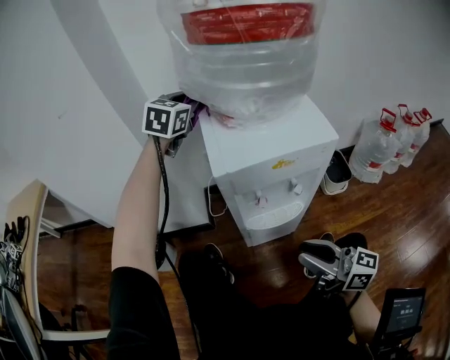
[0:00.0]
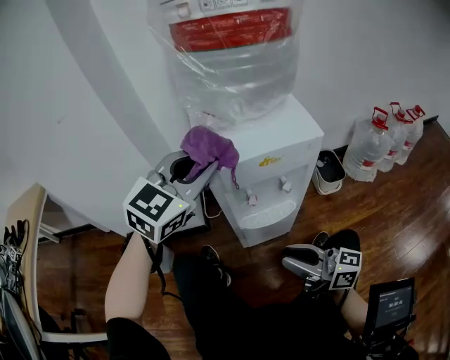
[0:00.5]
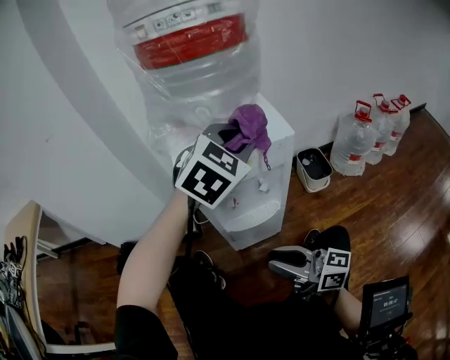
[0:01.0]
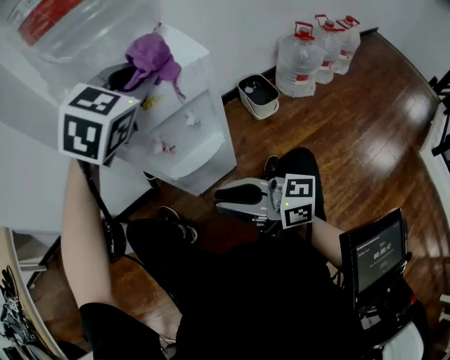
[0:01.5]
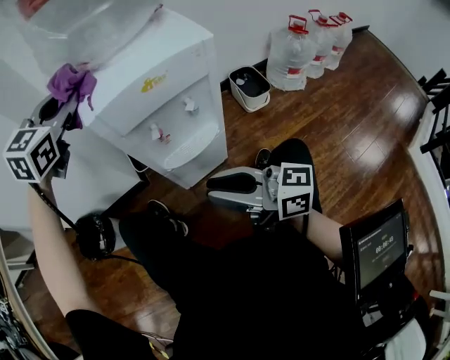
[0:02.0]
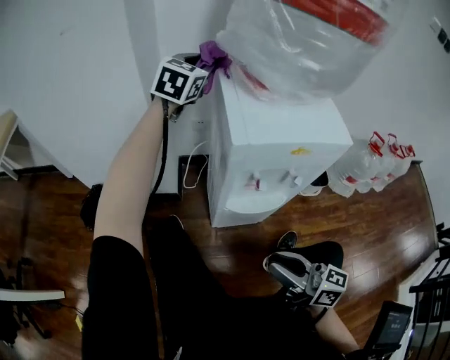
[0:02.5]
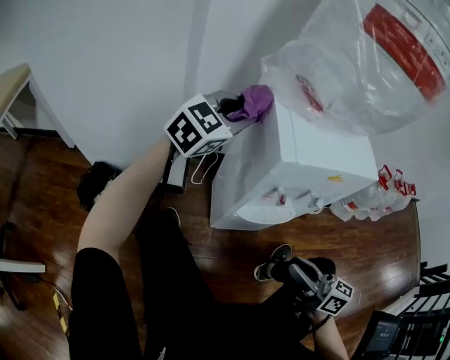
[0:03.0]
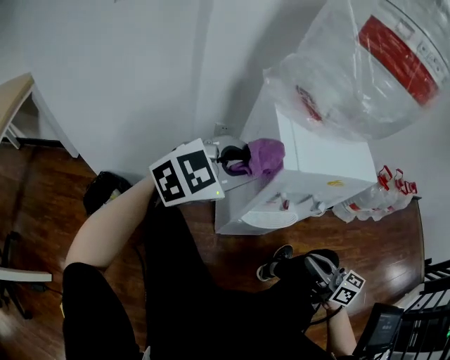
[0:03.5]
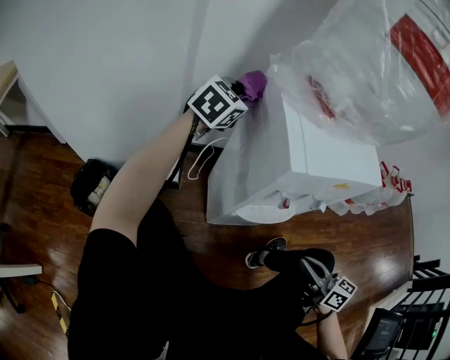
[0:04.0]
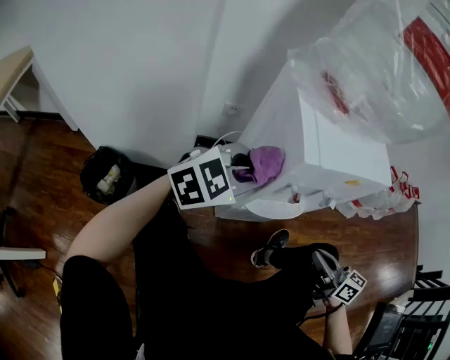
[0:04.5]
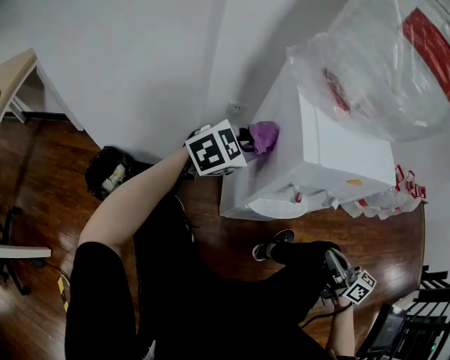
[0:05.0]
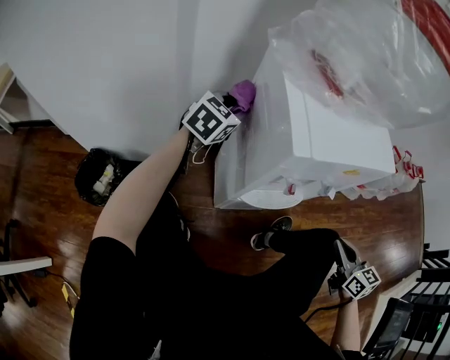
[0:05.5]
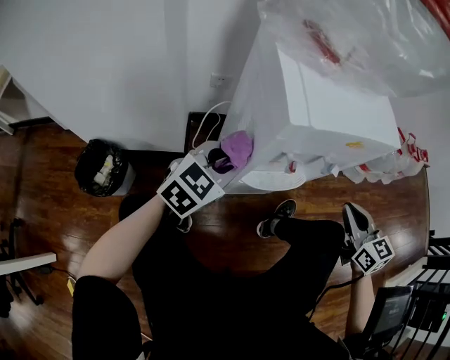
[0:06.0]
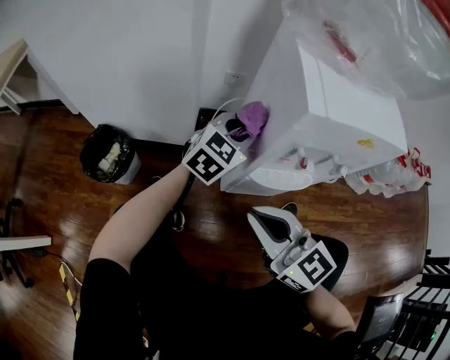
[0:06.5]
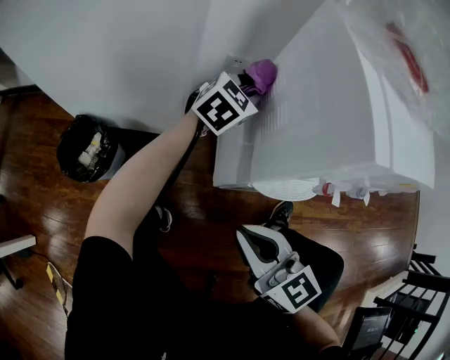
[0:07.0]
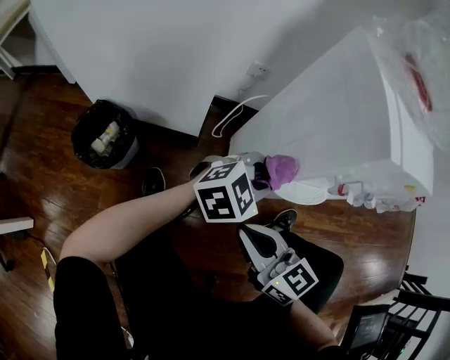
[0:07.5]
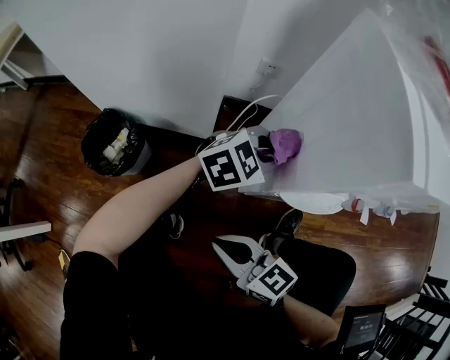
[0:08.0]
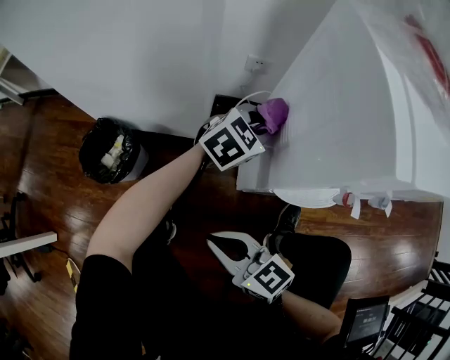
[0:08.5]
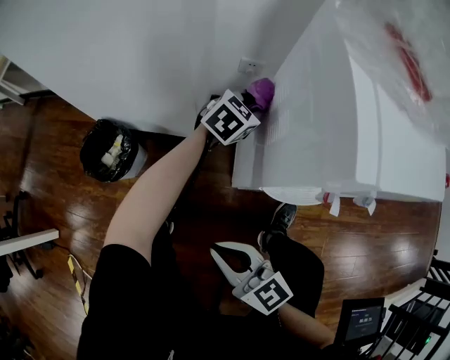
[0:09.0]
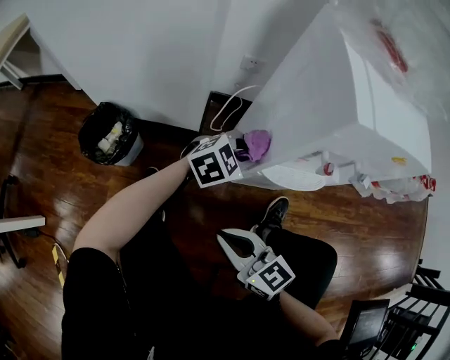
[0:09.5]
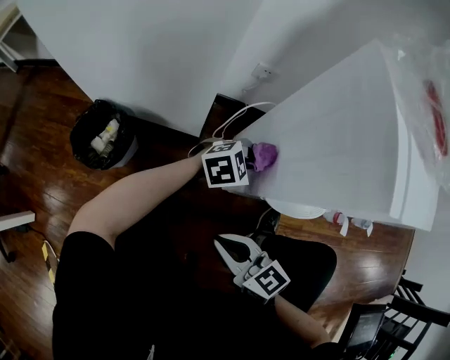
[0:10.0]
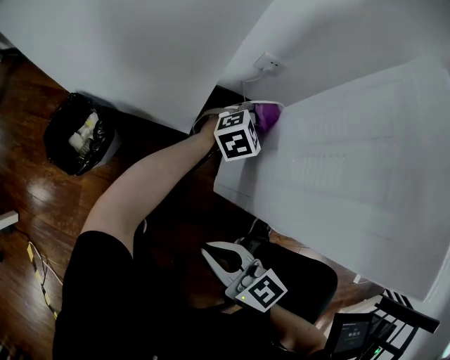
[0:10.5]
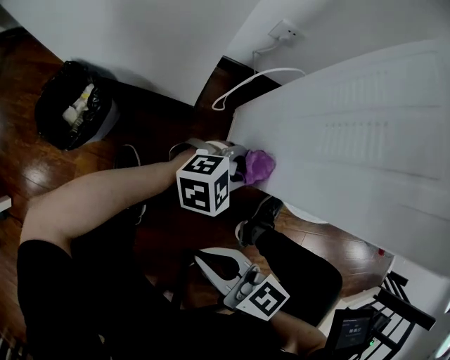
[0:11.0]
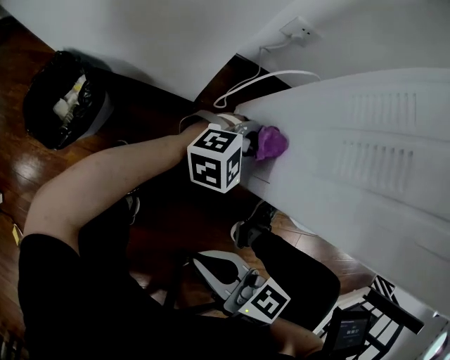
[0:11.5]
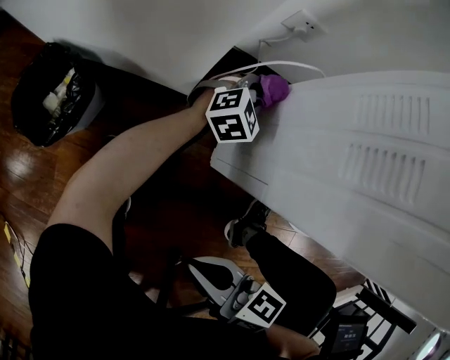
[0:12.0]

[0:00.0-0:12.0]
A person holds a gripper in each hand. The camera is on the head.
0:00.0 to 0:02.0: The left gripper goes approximately 15 cm backward.
0:02.0 to 0:04.0: The left gripper swings forward and backward, some 25 cm each way, with 2 reversals; the right gripper travels downward and to the right by some 10 cm, and swivels about 30 degrees.
0:04.0 to 0:06.0: The left gripper swings forward and backward, approximately 20 cm each way, with 2 reversals; the right gripper moves forward and to the right, roughly 10 cm, and swivels about 30 degrees.
0:06.0 to 0:08.0: The right gripper moves roughly 40 cm, and changes its angle by about 50 degrees, while the left gripper shifts approximately 10 cm downward.
0:08.0 to 0:10.0: The left gripper heads downward, covering about 5 cm.
0:10.0 to 0:12.0: The right gripper shifts approximately 5 cm downward, and swivels about 20 degrees; the left gripper moves approximately 20 cm, and swivels about 20 degrees.

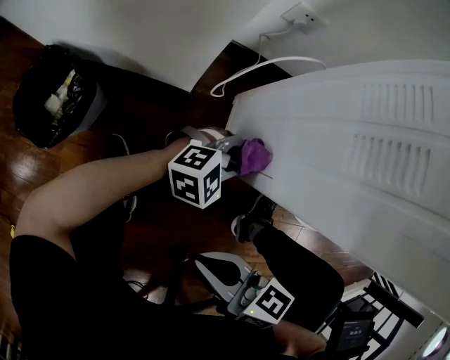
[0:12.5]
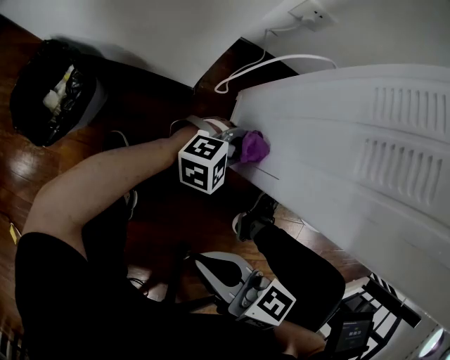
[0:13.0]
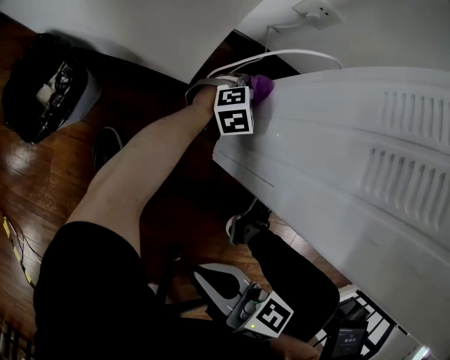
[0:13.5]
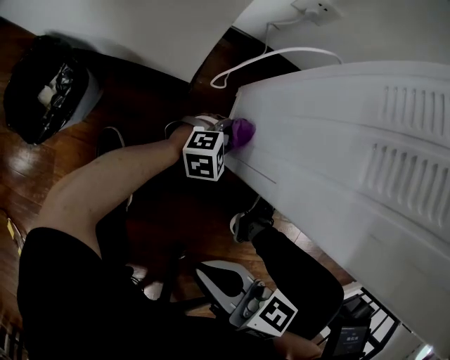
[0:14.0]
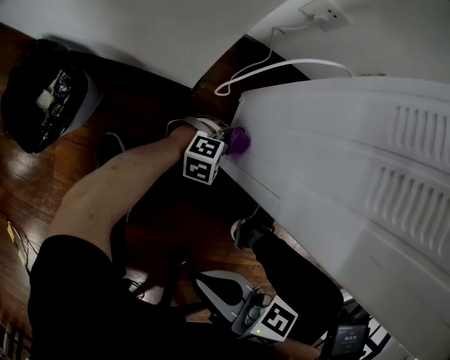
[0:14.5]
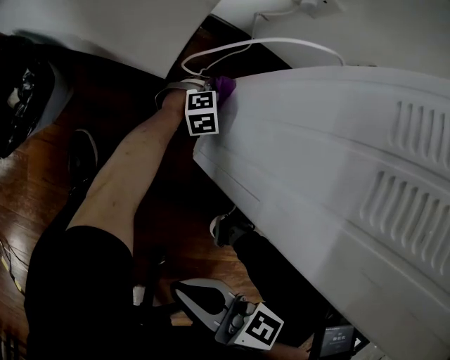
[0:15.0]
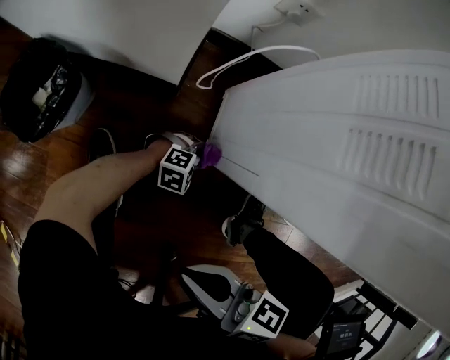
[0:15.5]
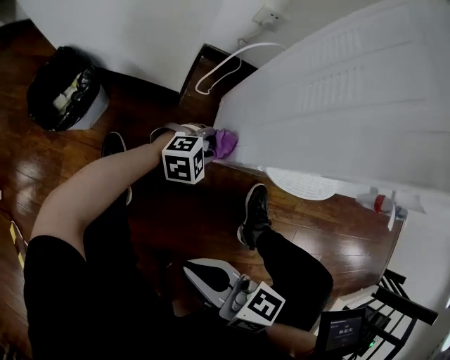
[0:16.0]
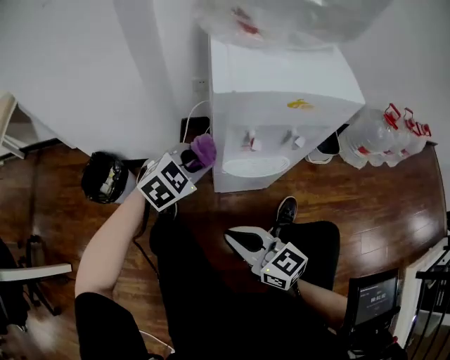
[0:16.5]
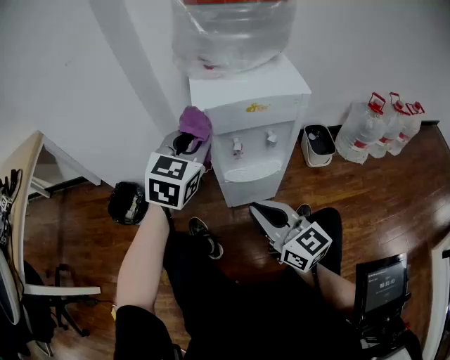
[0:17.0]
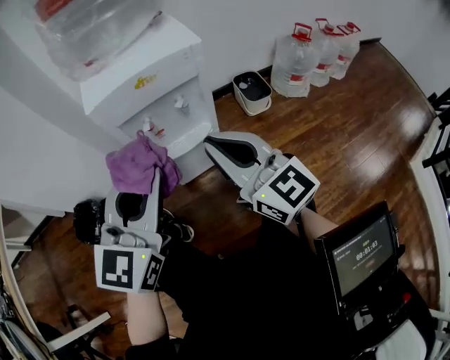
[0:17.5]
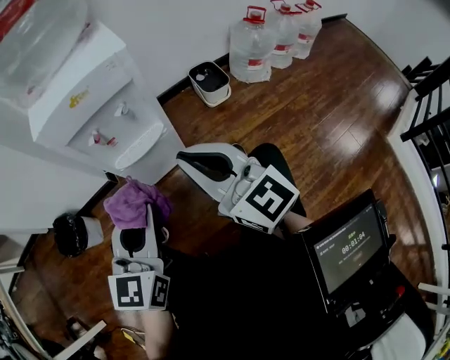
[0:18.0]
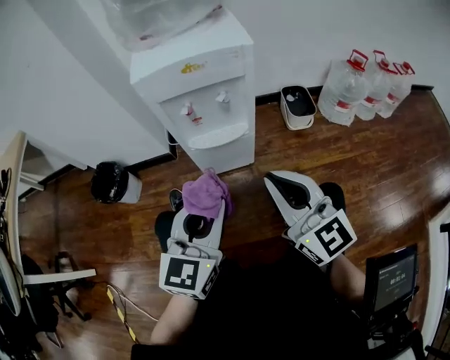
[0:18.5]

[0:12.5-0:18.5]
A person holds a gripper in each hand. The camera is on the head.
0:12.5 to 0:14.5: The left gripper heads downward, covering some 20 cm.
0:14.5 to 0:16.5: The left gripper travels upward by approximately 40 cm, and swivels some 20 degrees. The right gripper ends up roughly 20 cm from where it was, and changes its angle by roughly 40 degrees.
0:16.5 to 0:18.5: The right gripper goes some 25 cm to the right and upward, and swivels roughly 30 degrees. Meanwhile the left gripper heads backward, to the right and upward, covering some 30 cm, and swivels roughly 40 degrees.

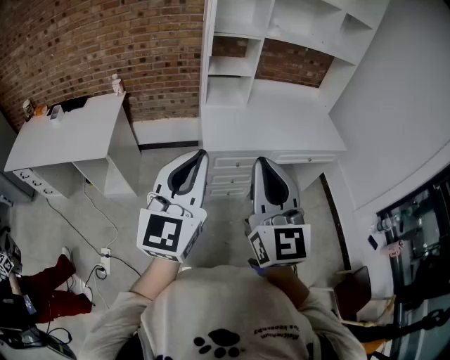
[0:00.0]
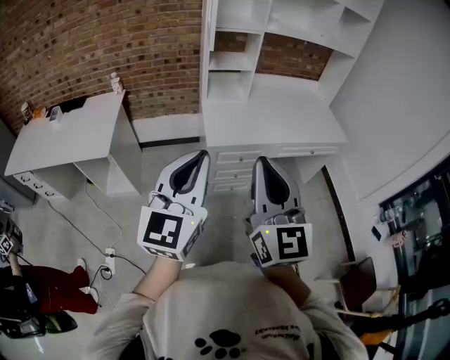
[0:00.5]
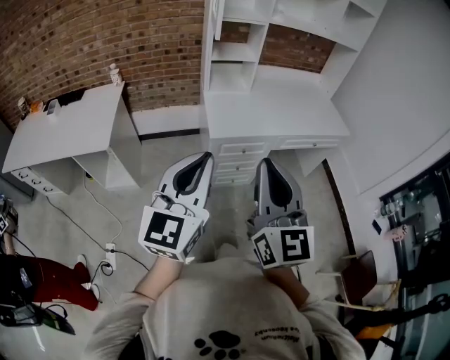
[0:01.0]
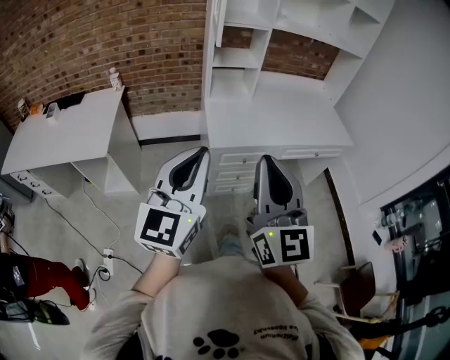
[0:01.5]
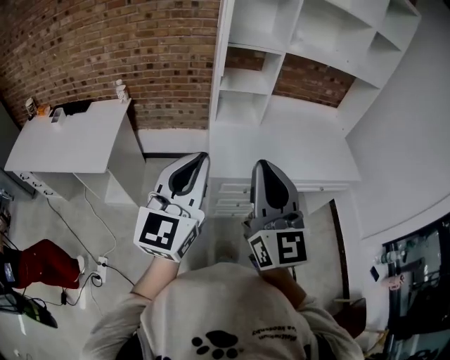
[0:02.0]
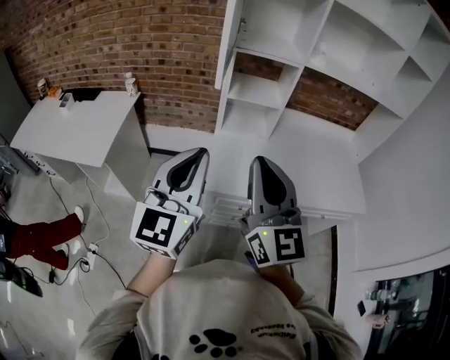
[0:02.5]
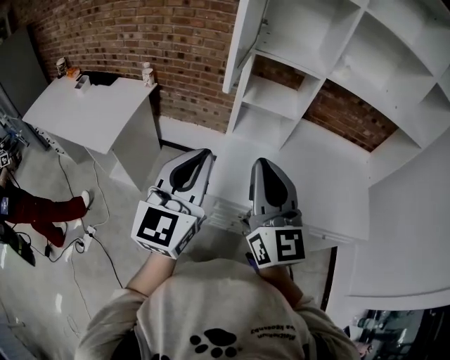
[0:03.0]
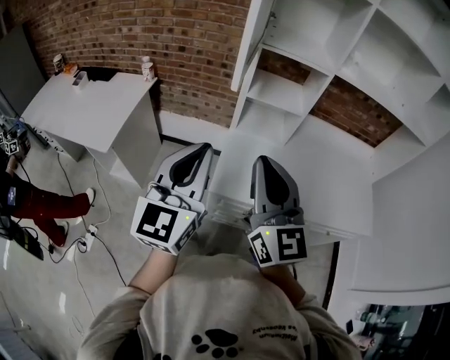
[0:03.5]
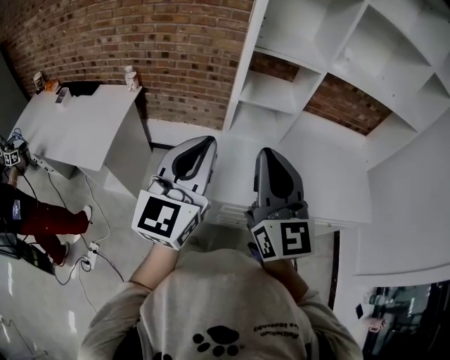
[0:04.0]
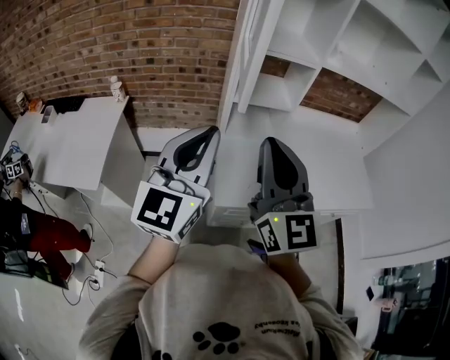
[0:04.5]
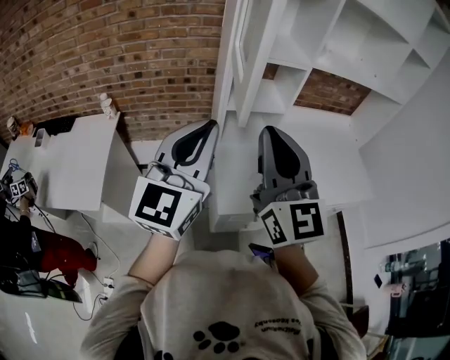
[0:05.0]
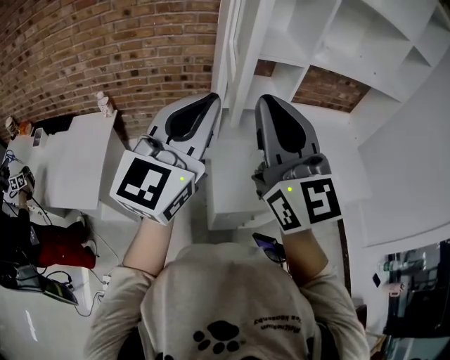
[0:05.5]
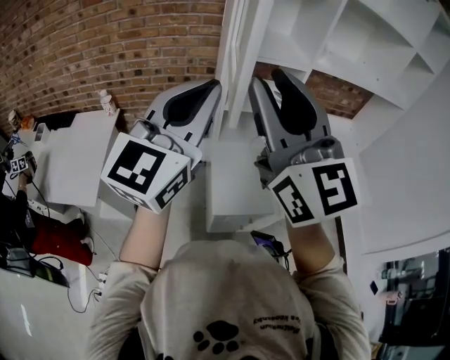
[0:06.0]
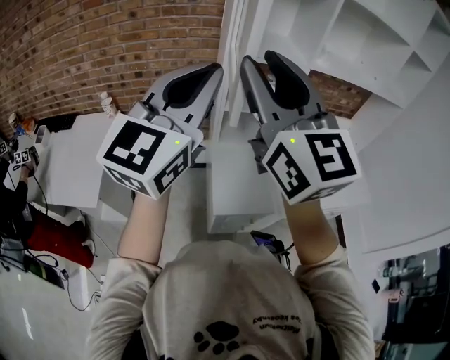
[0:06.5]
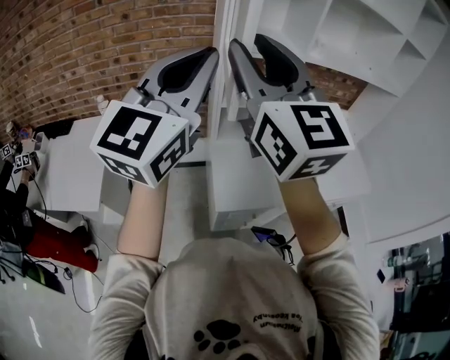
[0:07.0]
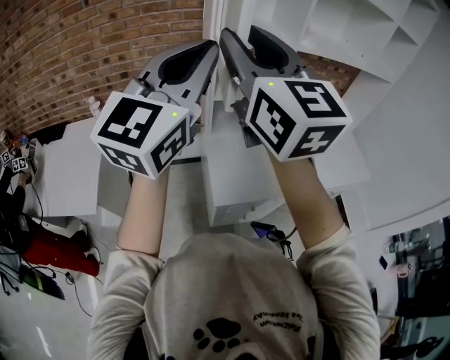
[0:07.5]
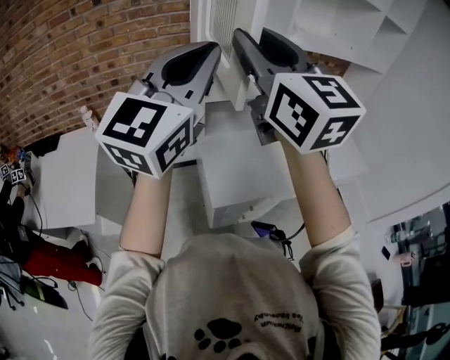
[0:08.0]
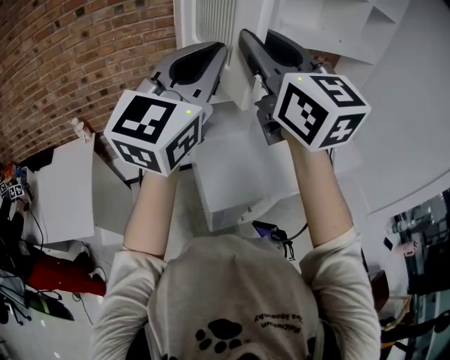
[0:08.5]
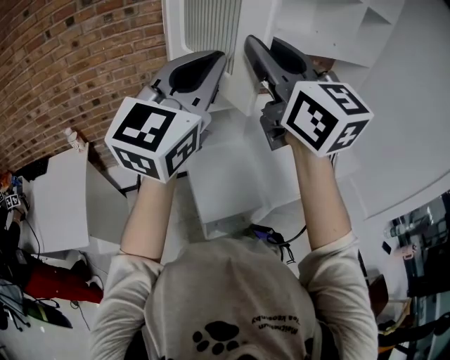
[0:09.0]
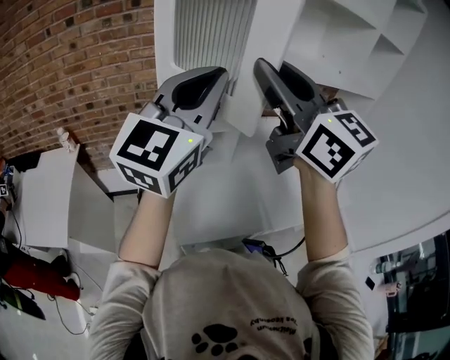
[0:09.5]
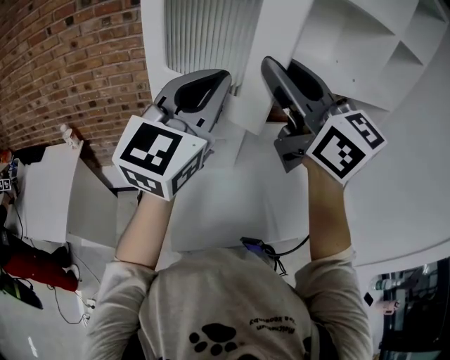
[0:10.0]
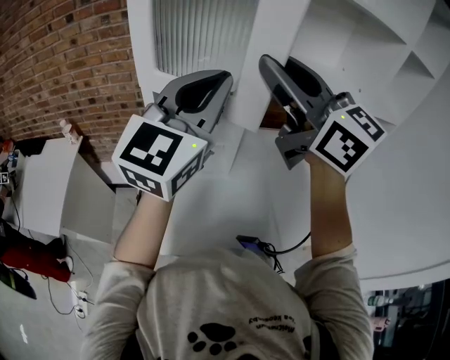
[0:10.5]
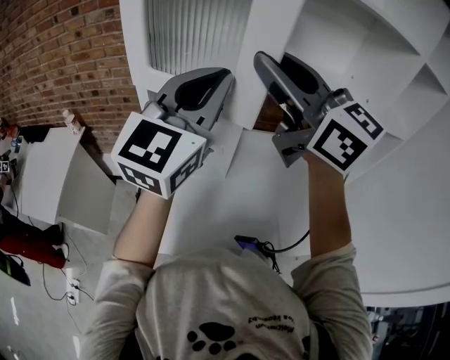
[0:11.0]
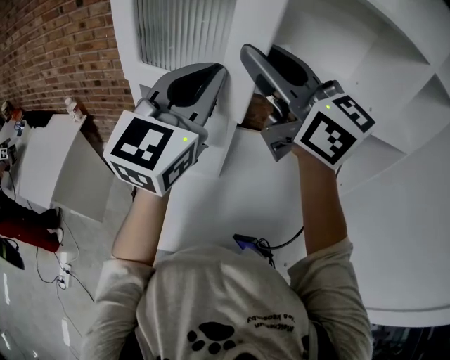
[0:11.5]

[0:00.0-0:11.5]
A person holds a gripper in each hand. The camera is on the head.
0:00.0 to 0:02.0: Both grippers travel together forward, roughly 15 cm.
0:02.0 to 0:04.0: The two grippers go approximately 20 cm forward.
0:04.0 to 0:06.0: Both grippers move upward and forward, approximately 15 cm. The right gripper opens up.
0:06.0 to 0:07.5: The right gripper changes place by approximately 5 cm.
0:07.5 to 0:09.5: Both grippers travel together to the right and forward, about 20 cm.
0:09.5 to 0:11.5: Both grippers move forward and to the right, roughly 15 cm. The right gripper changes its angle by roughly 20 degrees.
